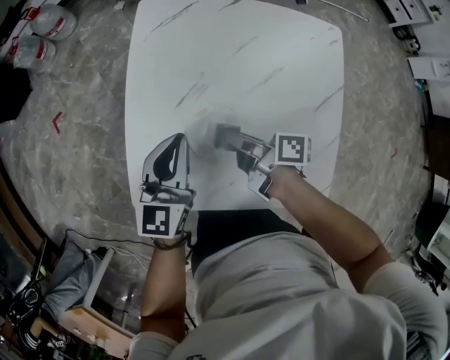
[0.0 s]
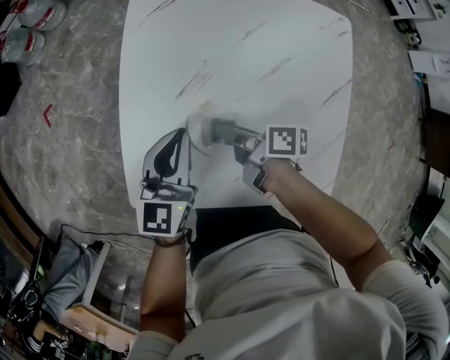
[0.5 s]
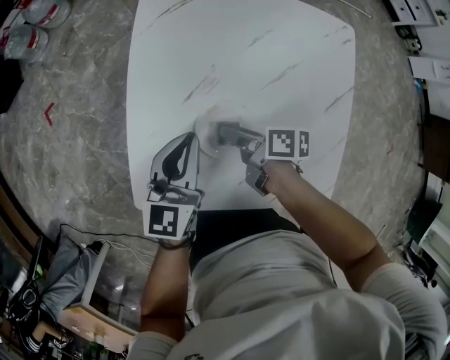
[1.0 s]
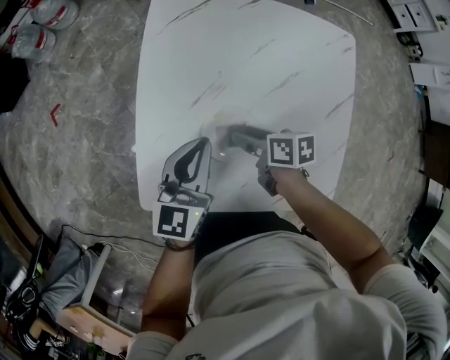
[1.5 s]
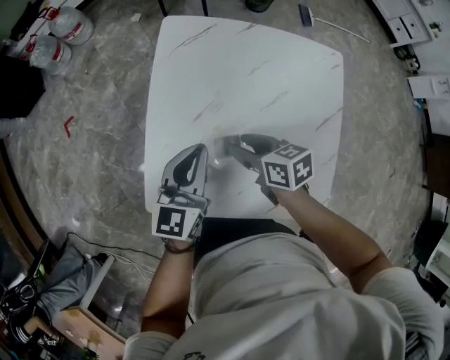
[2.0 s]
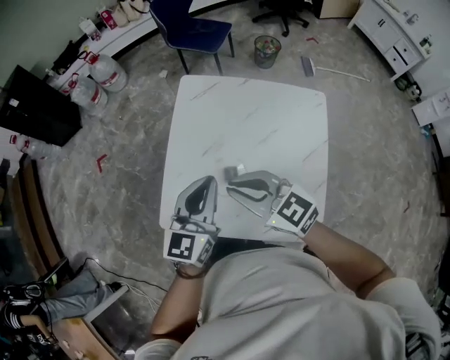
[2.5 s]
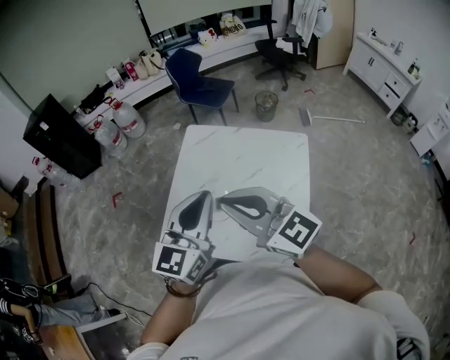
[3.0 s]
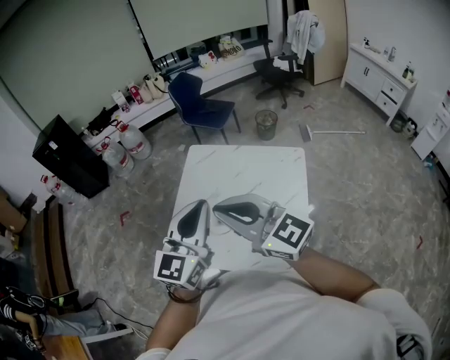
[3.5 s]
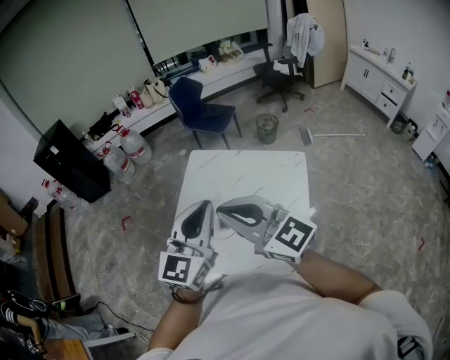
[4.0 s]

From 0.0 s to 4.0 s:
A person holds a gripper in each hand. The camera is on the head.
From 0.0 s to 2.0 s: The right gripper travels downward and back again, approximately 5 cm each way, and changes its angle by roughly 40 degrees.
From 2.0 s to 4.0 s: Both grippers move upward and backward, approximately 40 cm. The left gripper changes its angle by about 20 degrees. Meanwhile the right gripper tilts its fingers some 40 degrees upward, and closes its fingers.

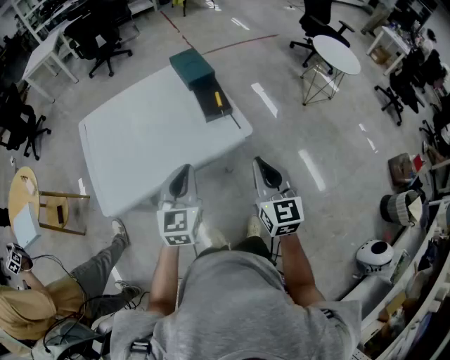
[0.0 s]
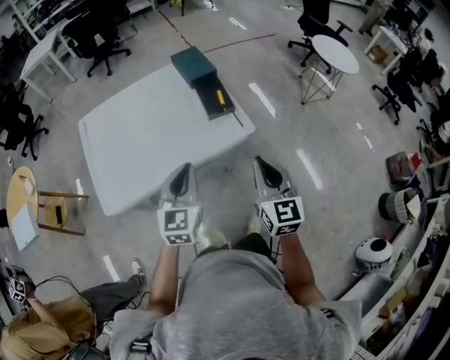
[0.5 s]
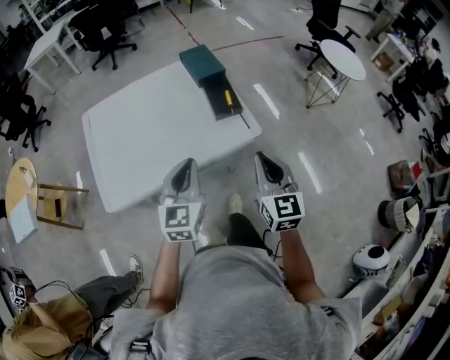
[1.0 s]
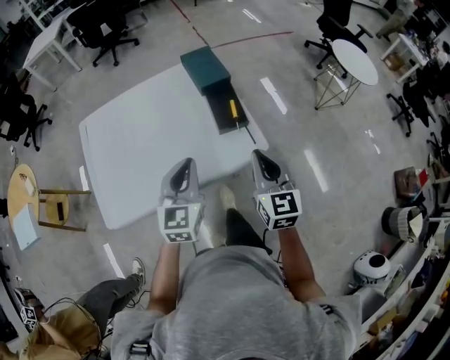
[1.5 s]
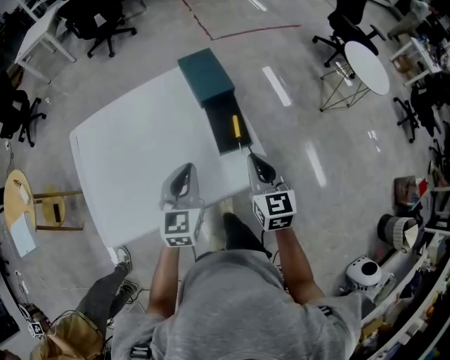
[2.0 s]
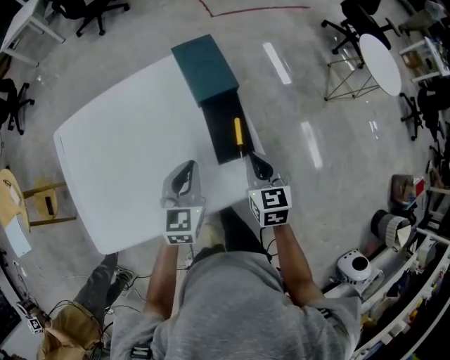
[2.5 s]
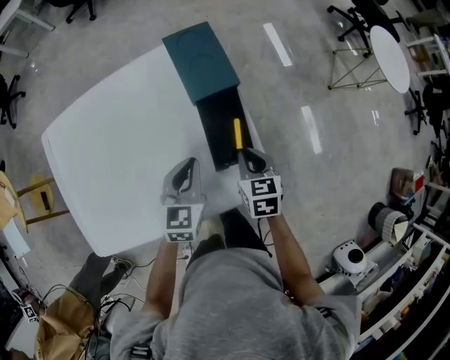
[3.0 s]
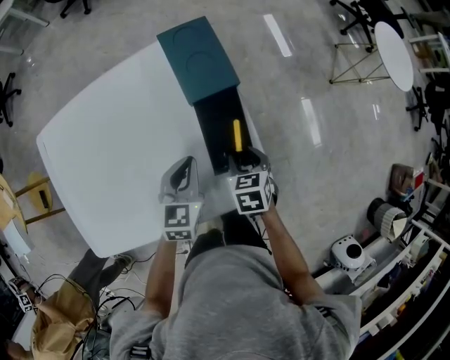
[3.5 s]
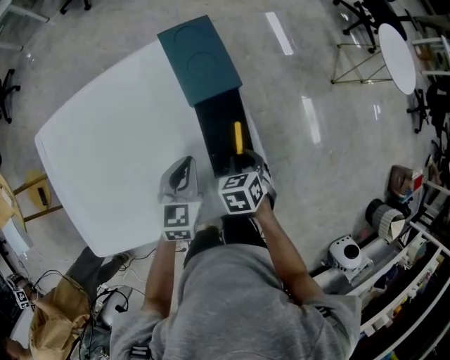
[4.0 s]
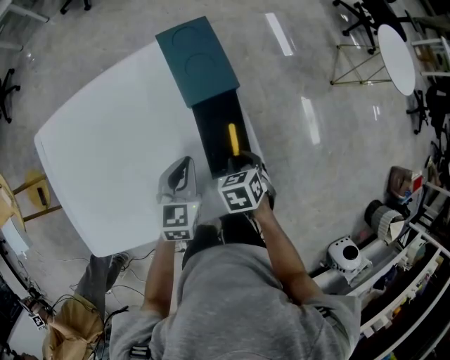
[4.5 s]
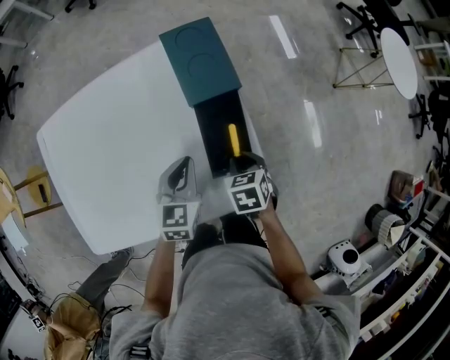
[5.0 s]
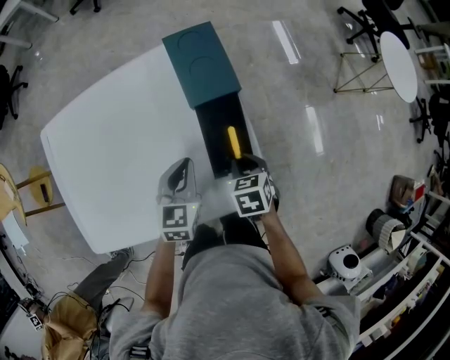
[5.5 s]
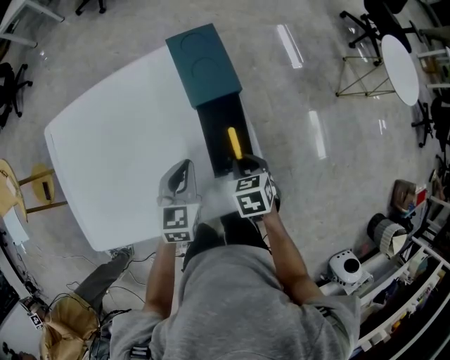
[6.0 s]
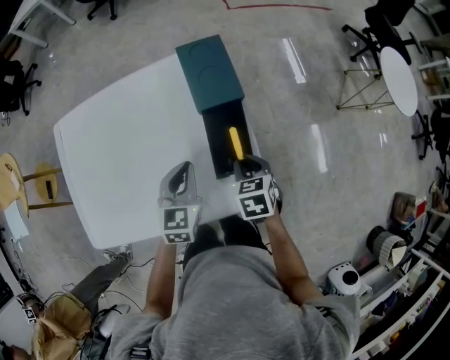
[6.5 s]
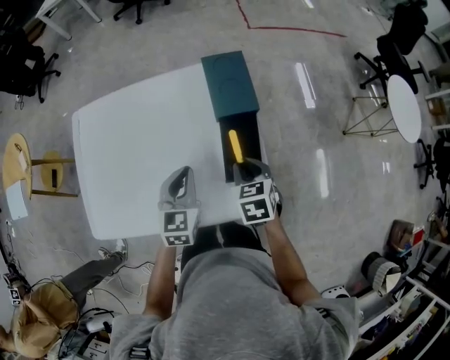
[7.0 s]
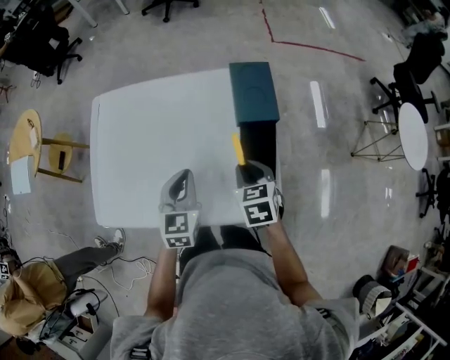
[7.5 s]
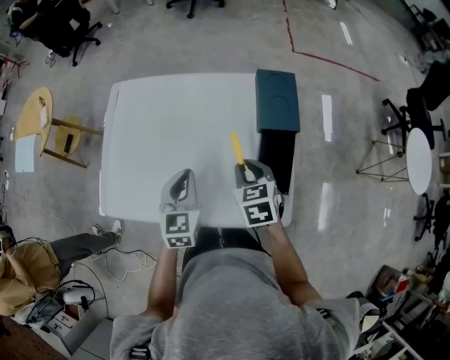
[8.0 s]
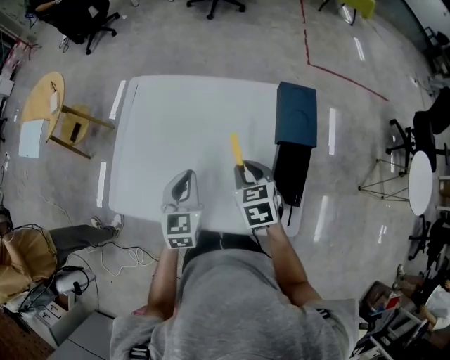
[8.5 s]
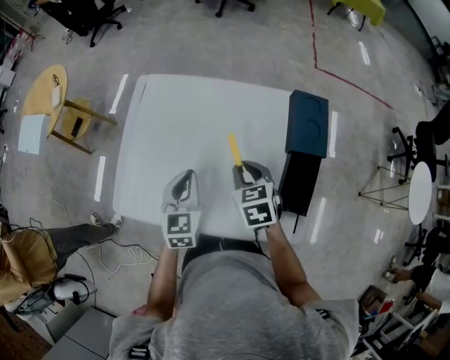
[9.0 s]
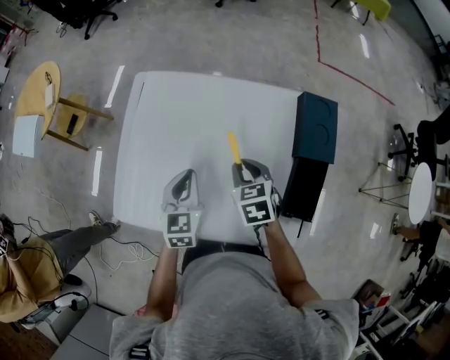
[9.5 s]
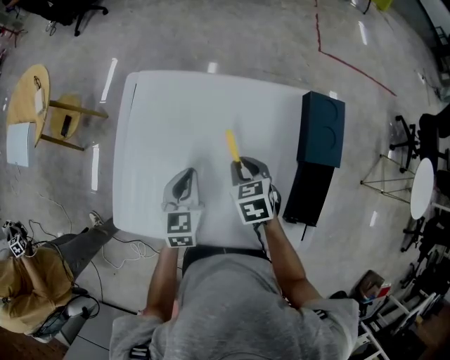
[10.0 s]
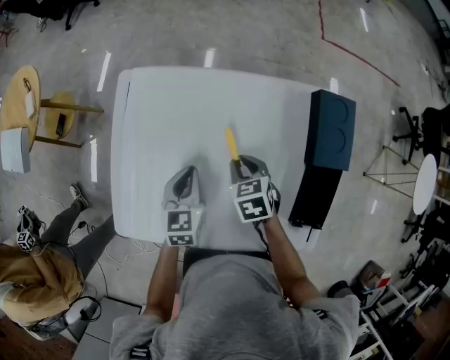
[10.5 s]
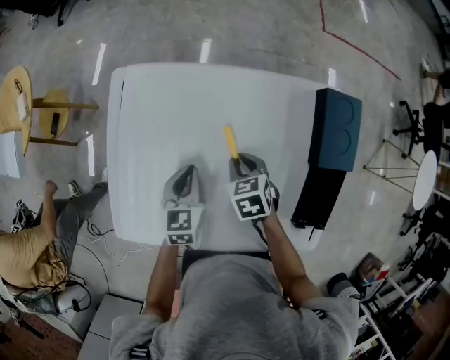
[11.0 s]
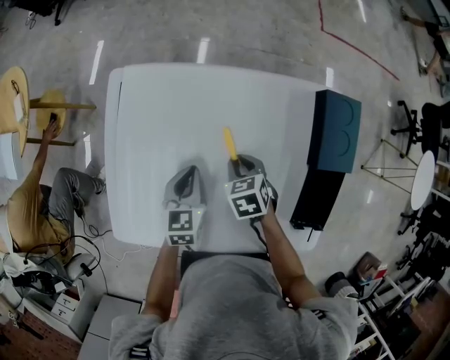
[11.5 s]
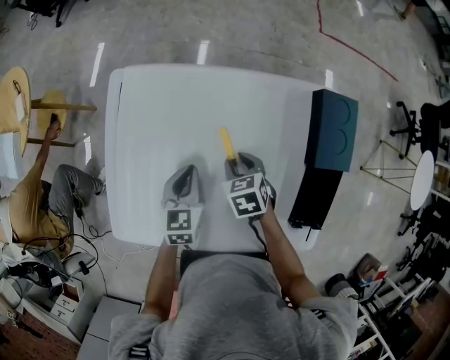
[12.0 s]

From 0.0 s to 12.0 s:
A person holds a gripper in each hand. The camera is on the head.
From 0.0 s to 2.0 s: Both grippers move forward, approximately 25 cm.
From 2.0 s to 4.0 s: The grippers both shift downward and forward by some 20 cm. The right gripper tips its fingers downward by some 50 degrees, and opens its fingers.
From 4.0 s to 6.0 s: The grippers make only small movements.
From 6.0 s to 8.0 s: Both grippers travel together to the left and upward, roughly 20 cm. The right gripper rotates about 30 degrees. The left gripper changes its angle by about 20 degrees.
From 8.0 s to 10.0 s: Both grippers travel together forward, to the left and downward, some 20 cm.
From 10.0 s to 12.0 s: Both grippers move downward, some 5 cm.

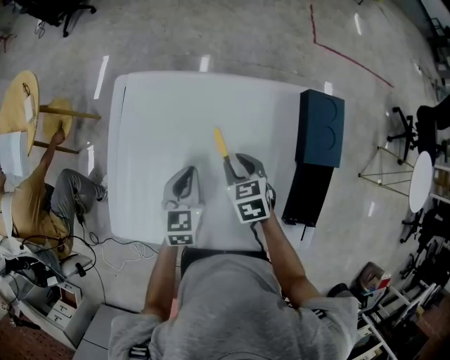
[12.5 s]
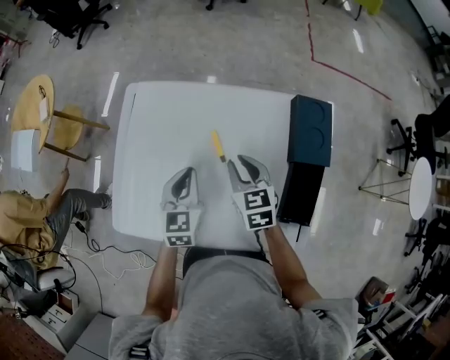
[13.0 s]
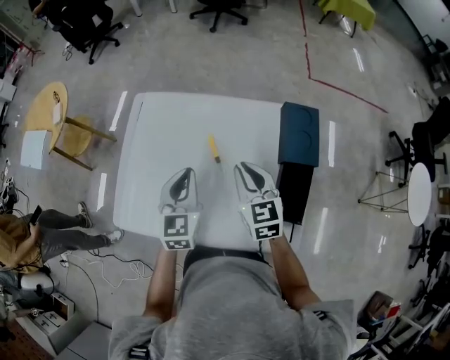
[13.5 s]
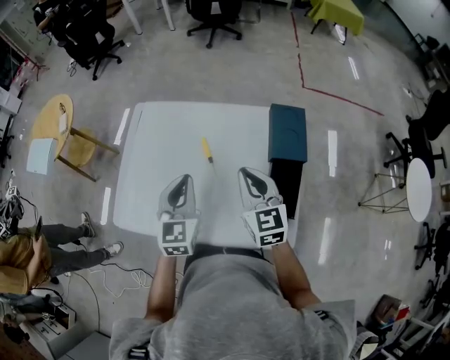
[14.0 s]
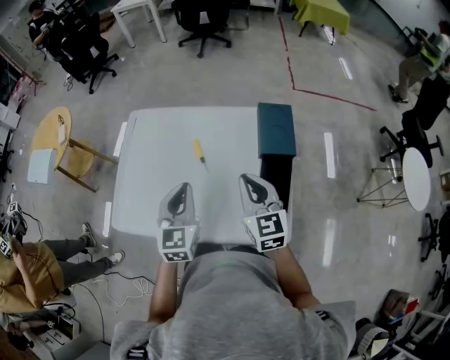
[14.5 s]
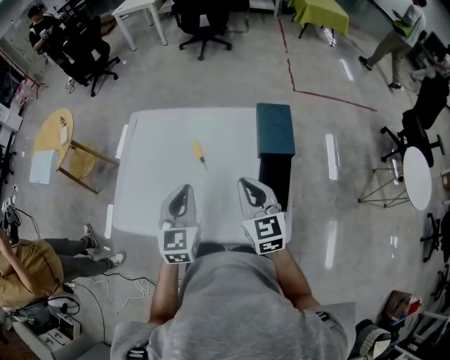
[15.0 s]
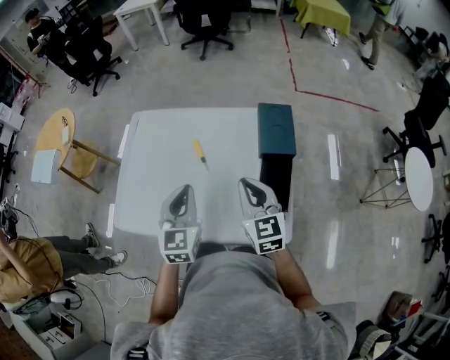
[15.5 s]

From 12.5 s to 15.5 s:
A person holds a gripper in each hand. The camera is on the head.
From 12.5 s to 14.0 s: The right gripper moves upward, backward and to the right, roughly 25 cm, tips its fingers upward by some 30 degrees, and closes up. Meanwhile the left gripper heads upward and backward, covering some 20 cm, and rotates about 20 degrees.
From 14.0 s to 15.5 s: Both grippers travel together backward, some 5 cm.

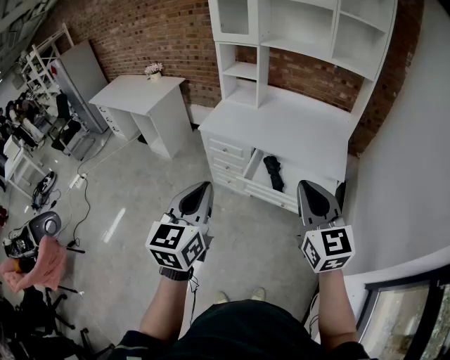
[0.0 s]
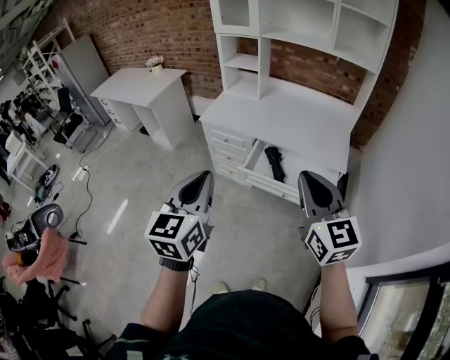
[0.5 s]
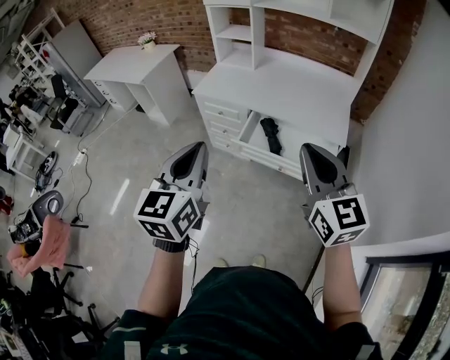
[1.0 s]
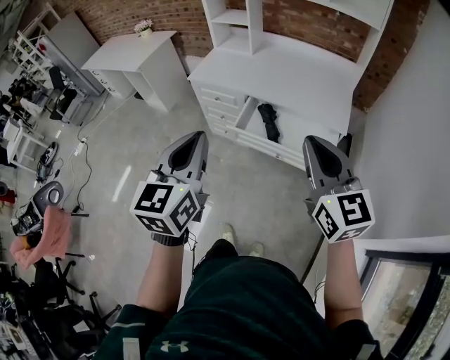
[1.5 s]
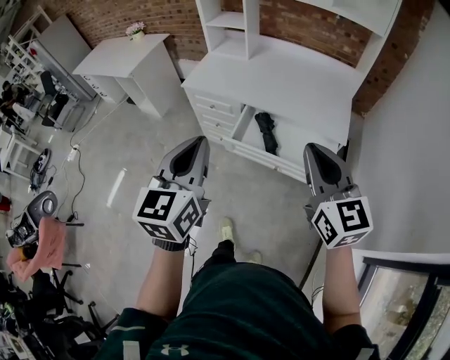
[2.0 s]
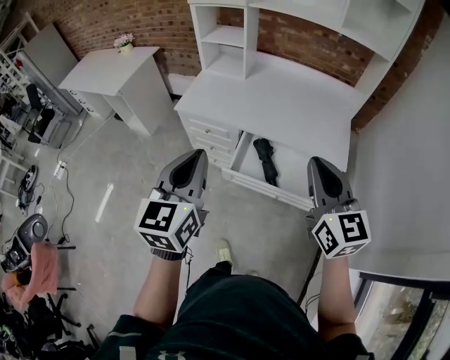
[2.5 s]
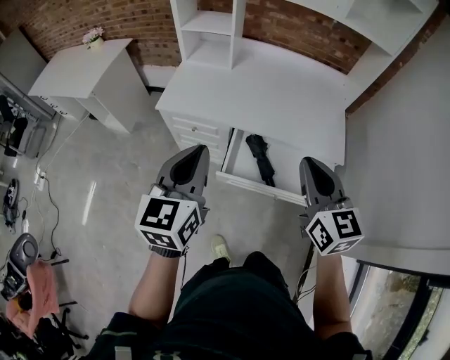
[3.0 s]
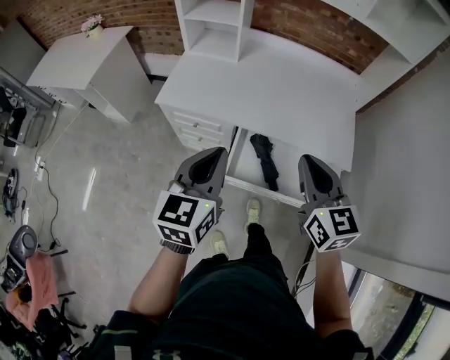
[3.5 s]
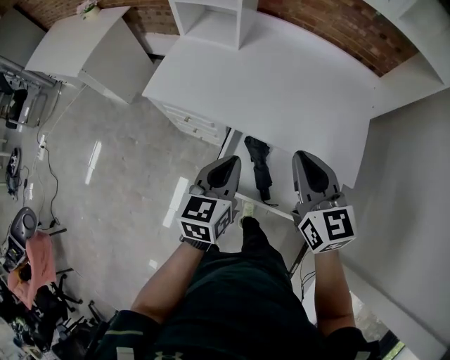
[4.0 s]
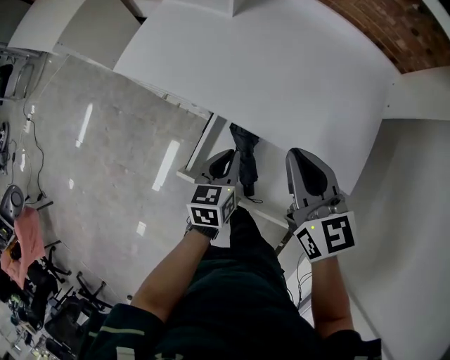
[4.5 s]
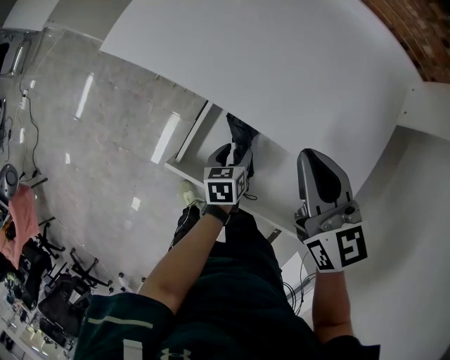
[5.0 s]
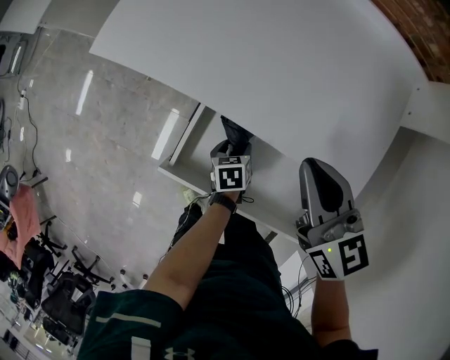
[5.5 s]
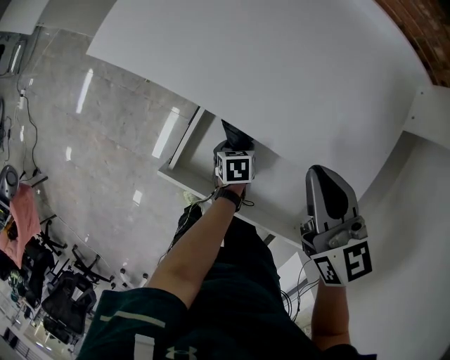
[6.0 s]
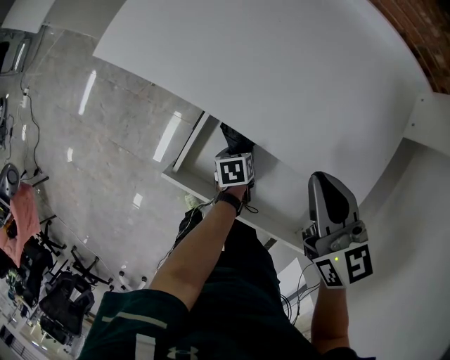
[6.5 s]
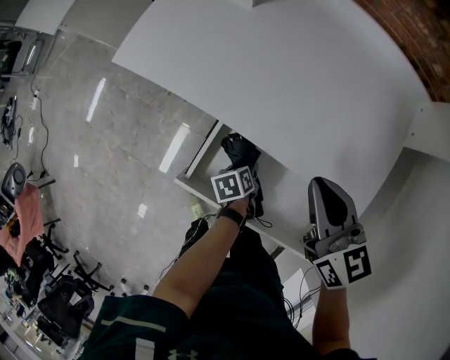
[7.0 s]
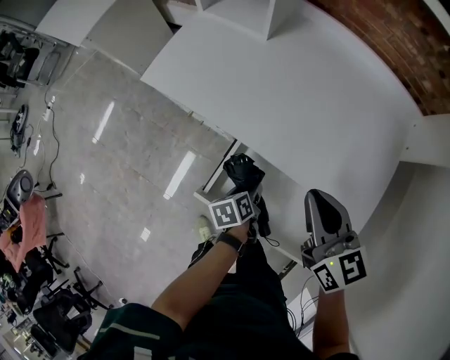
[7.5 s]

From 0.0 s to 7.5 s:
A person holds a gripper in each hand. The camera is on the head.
From 0.0 s to 2.0 s: The right gripper heads to the right and forward, covering some 10 cm; the left gripper travels forward and to the right by some 10 cm.
From 2.0 s to 4.0 s: The two grippers go about 40 cm forward and downward. The left gripper turns by some 20 degrees.
From 4.0 s to 5.5 s: The left gripper heads downward, covering approximately 35 cm, tips its fingers downward by some 40 degrees, and opens its fingers; the right gripper moves downward, forward and to the right, about 15 cm.
From 5.5 s to 7.5 s: The left gripper goes some 10 cm upward and to the left, and swivels roughly 30 degrees. The right gripper is displaced to the left by roughly 5 cm.
